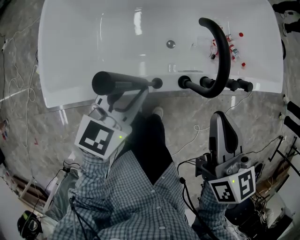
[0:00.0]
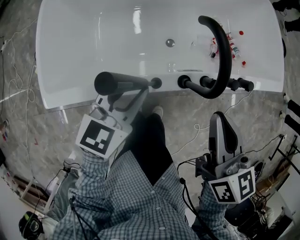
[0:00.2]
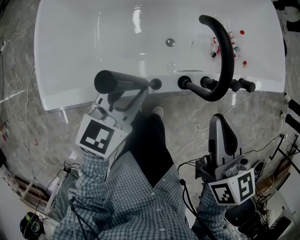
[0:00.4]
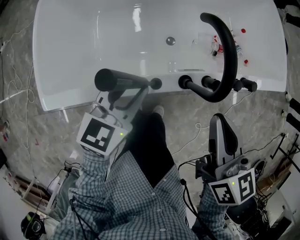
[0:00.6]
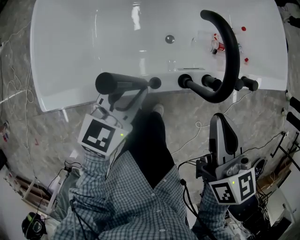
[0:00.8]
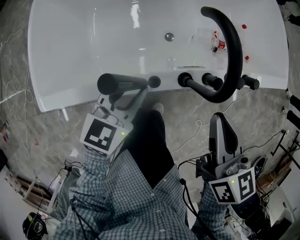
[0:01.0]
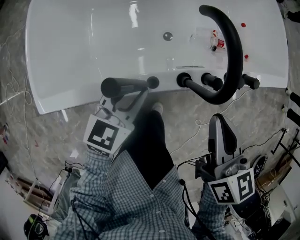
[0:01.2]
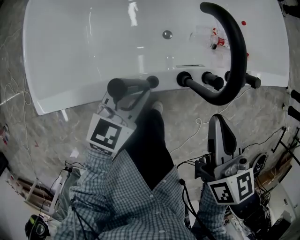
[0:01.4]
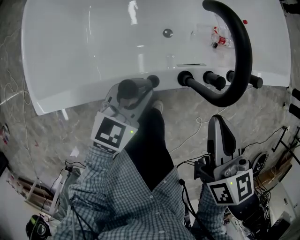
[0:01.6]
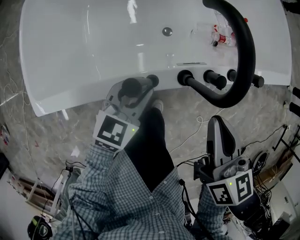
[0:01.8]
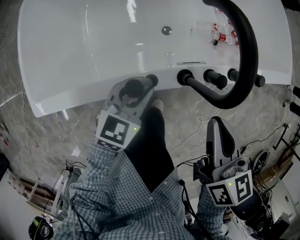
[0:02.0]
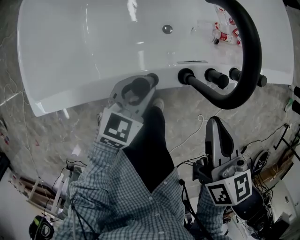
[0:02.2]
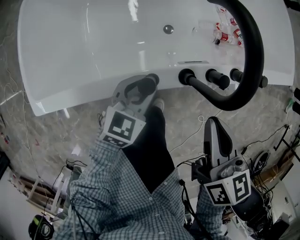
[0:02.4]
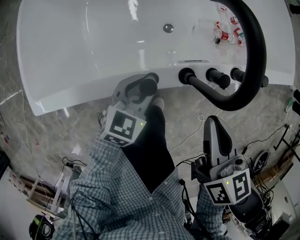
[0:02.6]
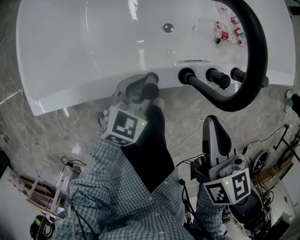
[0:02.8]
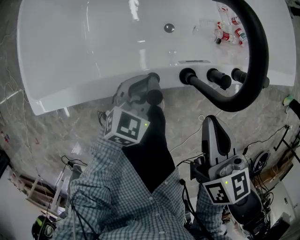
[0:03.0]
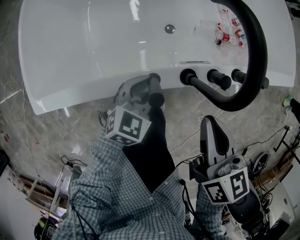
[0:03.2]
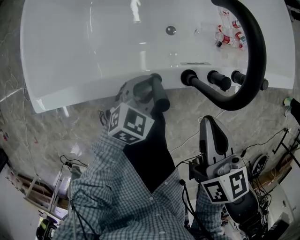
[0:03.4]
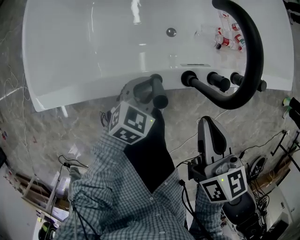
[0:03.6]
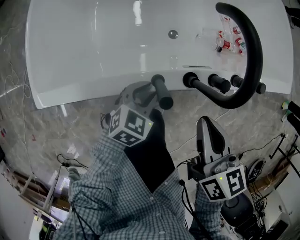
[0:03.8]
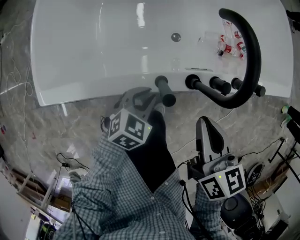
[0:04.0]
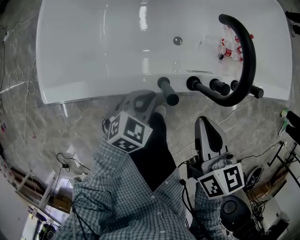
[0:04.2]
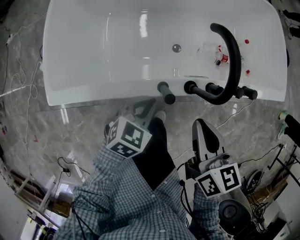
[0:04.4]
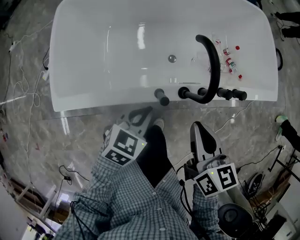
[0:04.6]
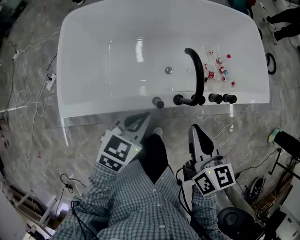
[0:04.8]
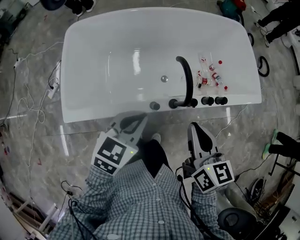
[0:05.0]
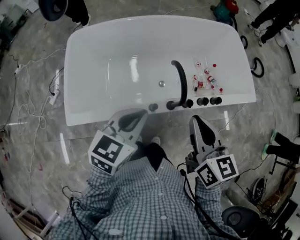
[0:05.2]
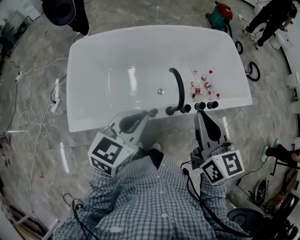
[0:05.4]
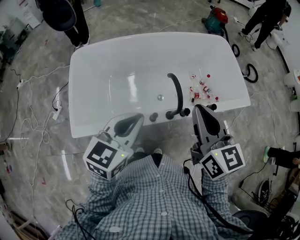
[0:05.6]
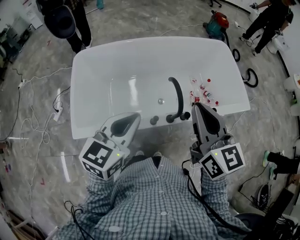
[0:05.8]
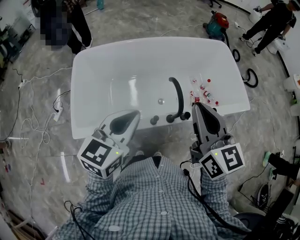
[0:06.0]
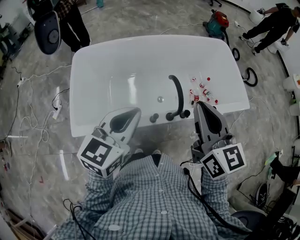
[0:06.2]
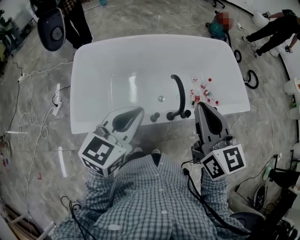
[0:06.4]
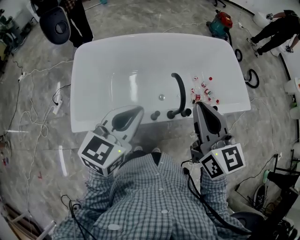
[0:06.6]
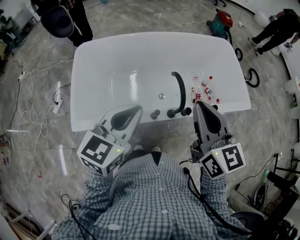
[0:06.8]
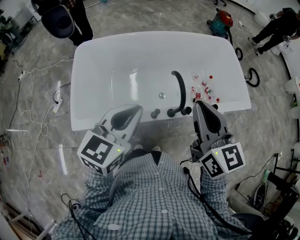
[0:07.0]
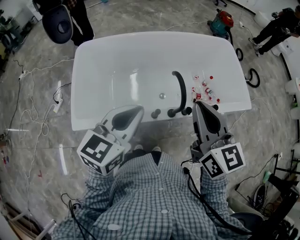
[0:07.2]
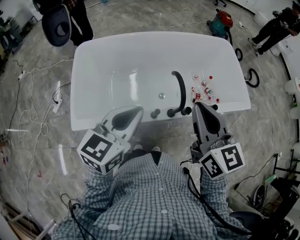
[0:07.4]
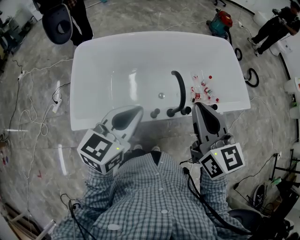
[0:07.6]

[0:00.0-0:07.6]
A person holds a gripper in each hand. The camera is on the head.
0:00.0 to 0:01.6: Both grippers move downward, roughly 10 cm.
0:01.6 to 0:03.0: The left gripper heads downward, covering about 5 cm.
0:03.0 to 0:04.6: The left gripper shifts about 15 cm upward, and closes its fingers. The right gripper moves upward, approximately 10 cm.
0:04.6 to 0:06.0: The grippers both shift upward by approximately 30 cm. The right gripper turns by approximately 30 degrees. Meanwhile the left gripper turns by approximately 30 degrees.
0:06.0 to 0:07.6: The grippers stay close to where they were, moving slightly.

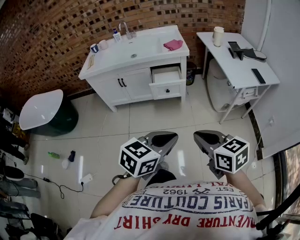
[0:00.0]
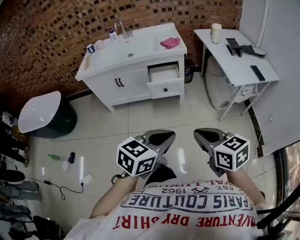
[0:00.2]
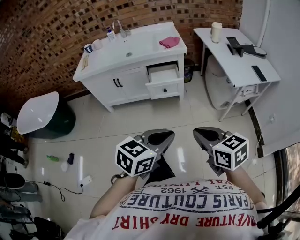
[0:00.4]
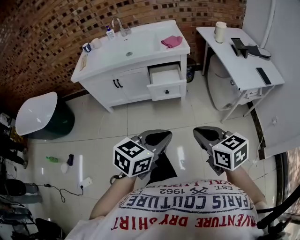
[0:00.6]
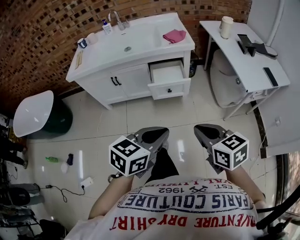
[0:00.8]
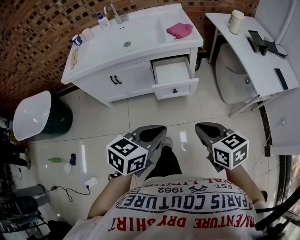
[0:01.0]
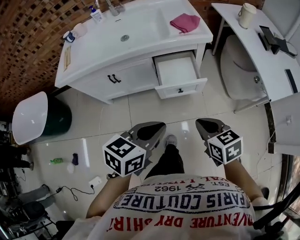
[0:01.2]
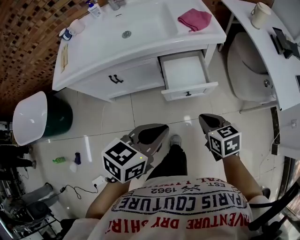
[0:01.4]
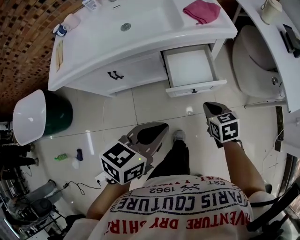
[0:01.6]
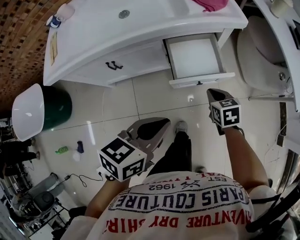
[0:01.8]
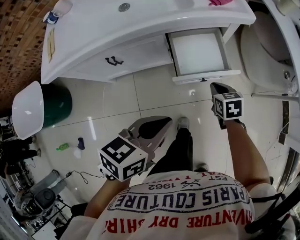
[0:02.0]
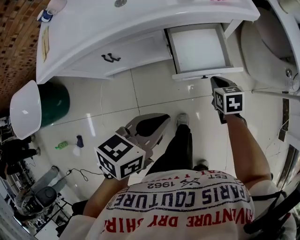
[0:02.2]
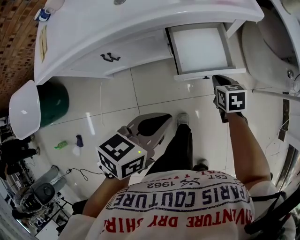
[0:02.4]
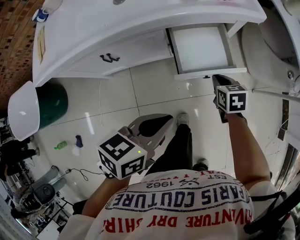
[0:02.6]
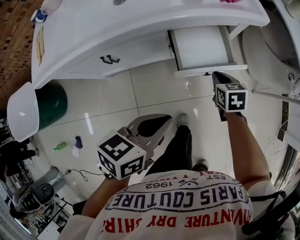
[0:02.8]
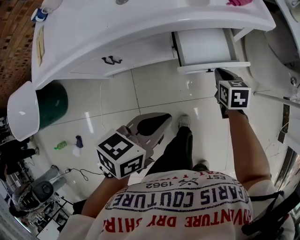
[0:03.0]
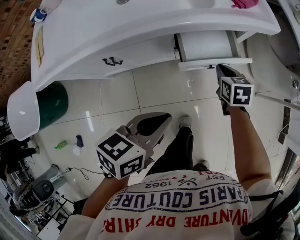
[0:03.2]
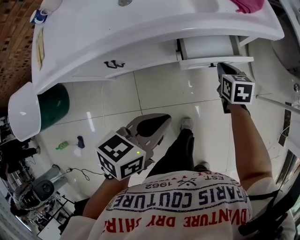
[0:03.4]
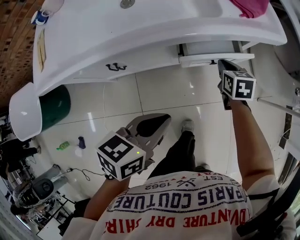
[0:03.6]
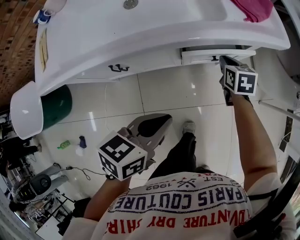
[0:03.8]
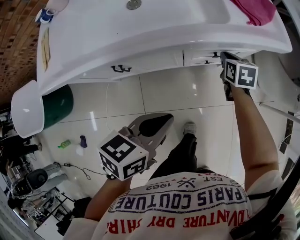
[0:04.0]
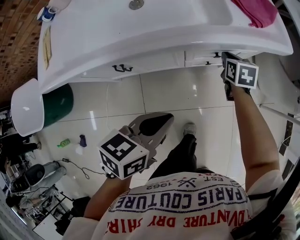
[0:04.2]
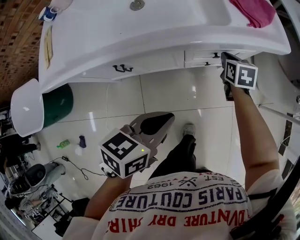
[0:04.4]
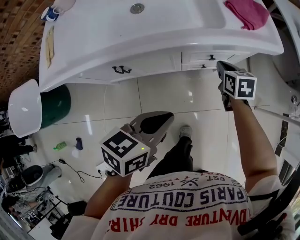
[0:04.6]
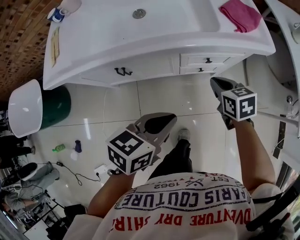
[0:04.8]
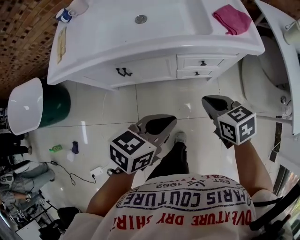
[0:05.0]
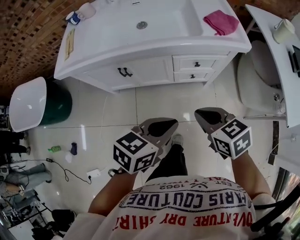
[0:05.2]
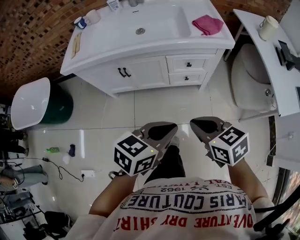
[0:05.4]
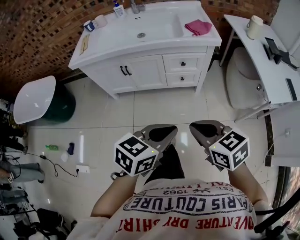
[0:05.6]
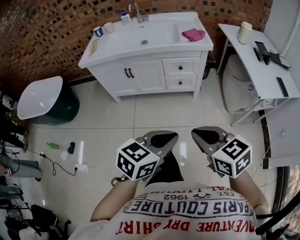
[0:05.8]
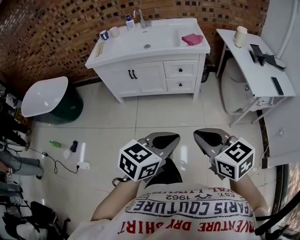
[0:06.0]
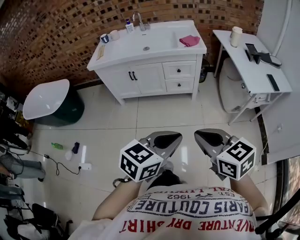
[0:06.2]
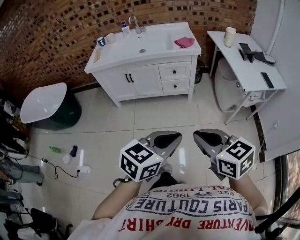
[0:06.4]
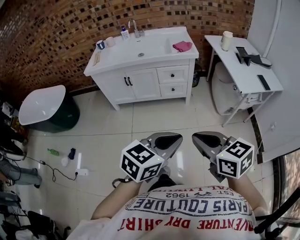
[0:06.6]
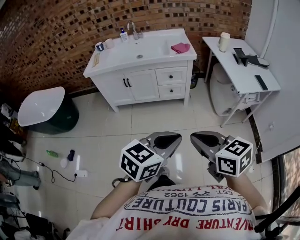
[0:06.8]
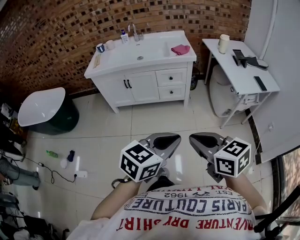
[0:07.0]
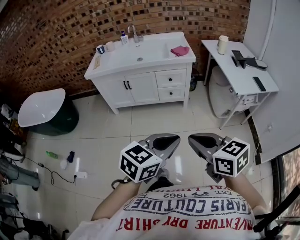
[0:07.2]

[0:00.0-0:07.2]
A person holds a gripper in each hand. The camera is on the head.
0:00.0 to 0:01.4: The two grippers travel together, forward, some 50 cm. The right gripper goes roughly 25 cm downward, and swivels approximately 20 degrees.
0:01.4 to 0:02.8: The right gripper heads downward and forward, covering about 25 cm; the left gripper is displaced downward, to the left and forward by roughly 15 cm.
0:02.8 to 0:04.4: The right gripper travels forward and to the left by roughly 15 cm. The left gripper travels forward and to the left by some 10 cm.
0:04.4 to 0:05.8: The pair of grippers is taken backward, about 50 cm. The right gripper travels upward by about 35 cm, and rotates some 50 degrees. Meanwhile the left gripper rotates about 20 degrees.
0:05.8 to 0:07.2: The two grippers go roughly 20 cm backward and upward.

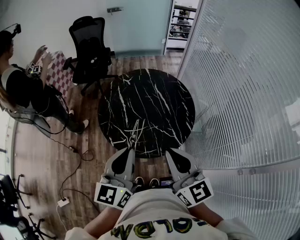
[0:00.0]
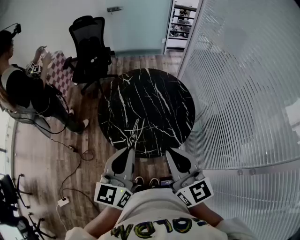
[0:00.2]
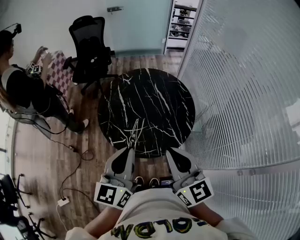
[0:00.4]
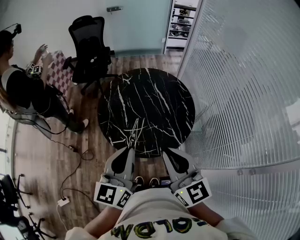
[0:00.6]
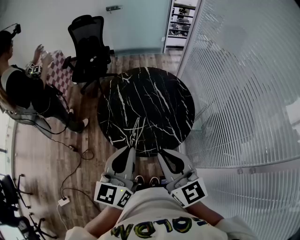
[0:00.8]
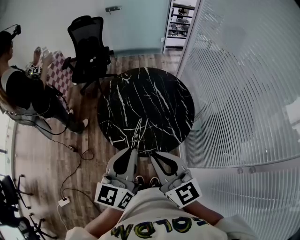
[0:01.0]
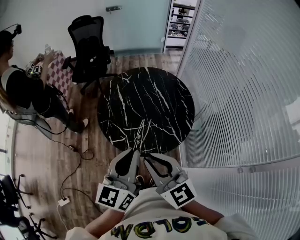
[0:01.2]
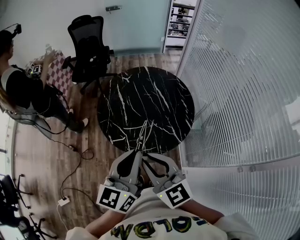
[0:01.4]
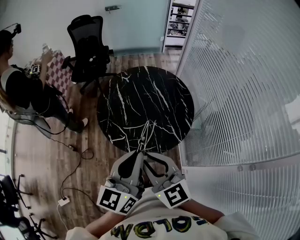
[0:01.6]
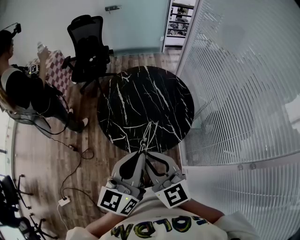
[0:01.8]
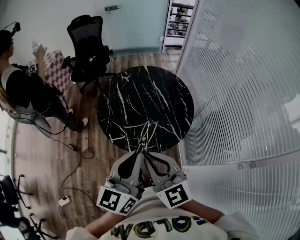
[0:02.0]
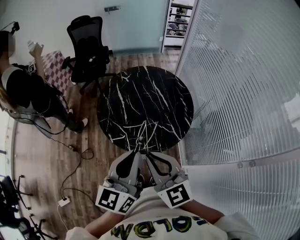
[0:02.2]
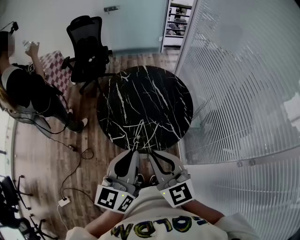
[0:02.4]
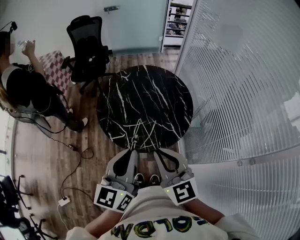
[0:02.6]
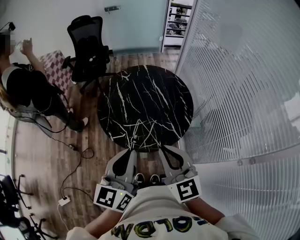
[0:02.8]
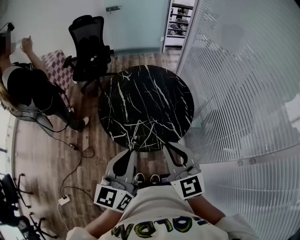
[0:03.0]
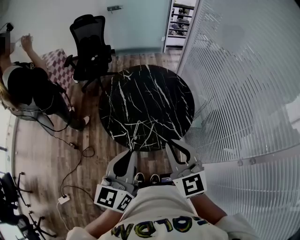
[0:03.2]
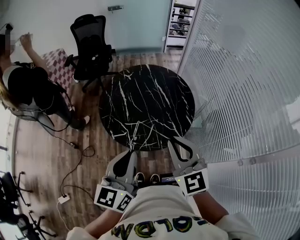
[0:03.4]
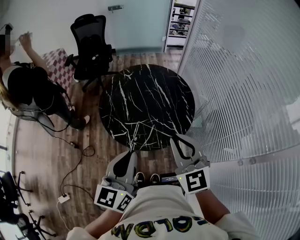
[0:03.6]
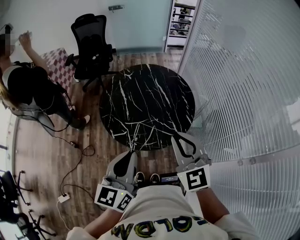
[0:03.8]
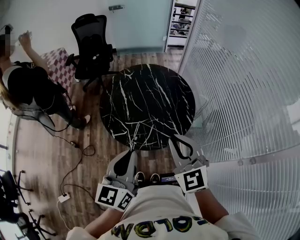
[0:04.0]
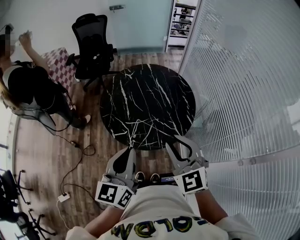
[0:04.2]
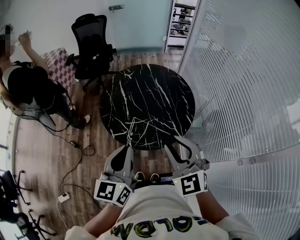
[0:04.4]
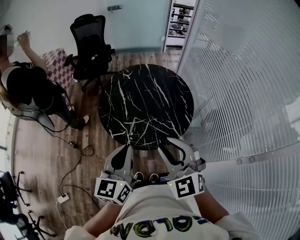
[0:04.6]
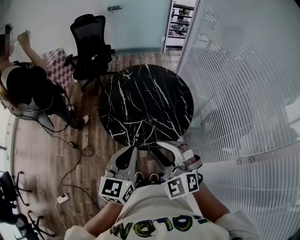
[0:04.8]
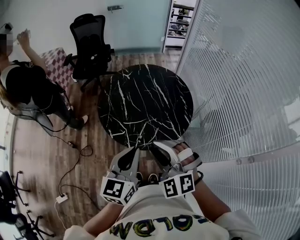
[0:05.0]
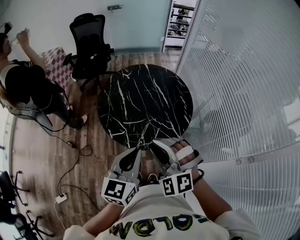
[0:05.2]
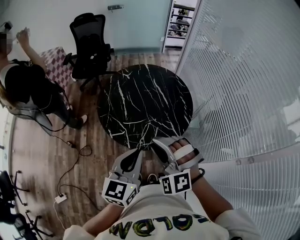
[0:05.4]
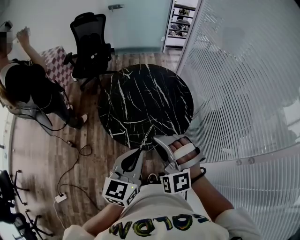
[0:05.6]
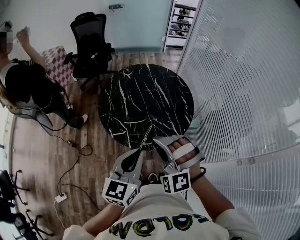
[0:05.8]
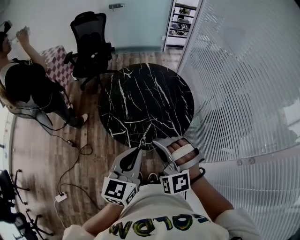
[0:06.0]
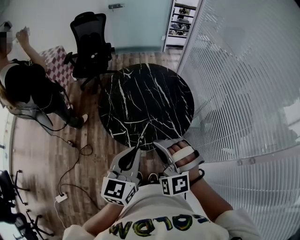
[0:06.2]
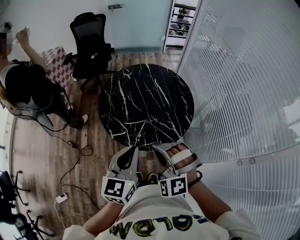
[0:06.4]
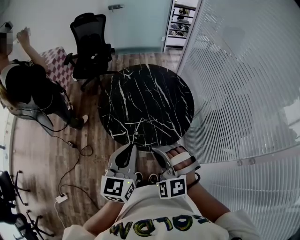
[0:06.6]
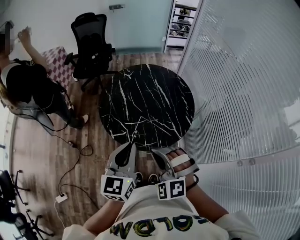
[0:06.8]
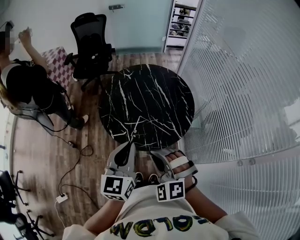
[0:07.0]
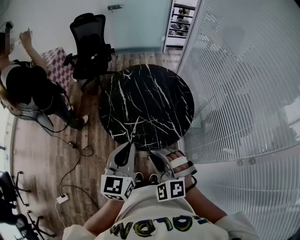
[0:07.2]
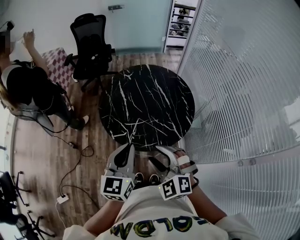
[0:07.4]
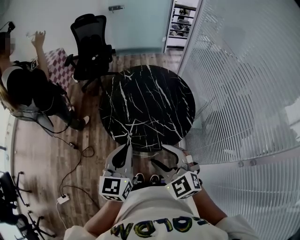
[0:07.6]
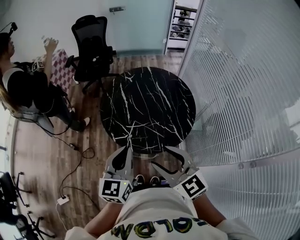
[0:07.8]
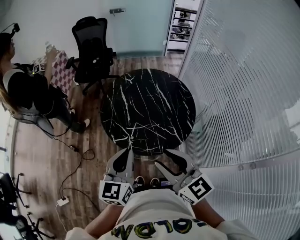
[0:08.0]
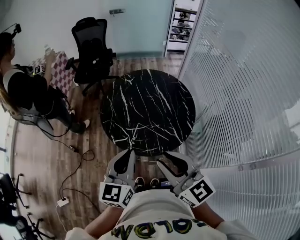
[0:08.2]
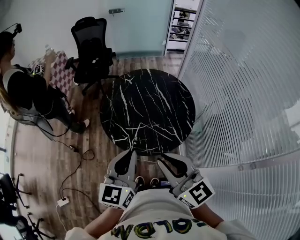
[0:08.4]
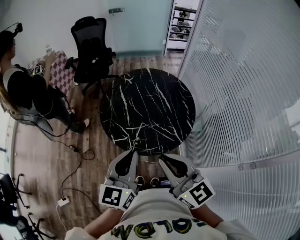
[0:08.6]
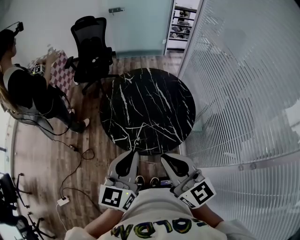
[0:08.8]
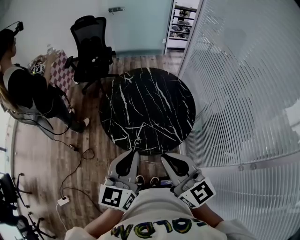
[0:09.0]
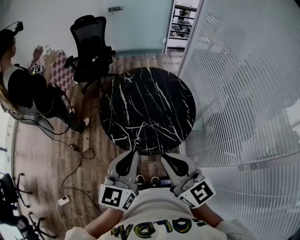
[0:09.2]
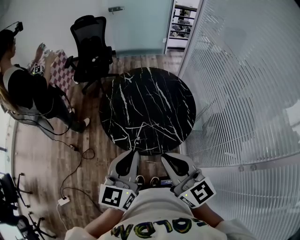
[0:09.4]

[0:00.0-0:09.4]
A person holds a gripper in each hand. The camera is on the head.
0:00.0 to 0:01.6: The right gripper moves to the left, approximately 5 cm.
0:01.6 to 0:03.2: The right gripper shifts about 5 cm to the right.
0:03.2 to 0:04.8: The right gripper shifts by about 5 cm, turns by about 30 degrees, and opens up.
0:04.8 to 0:06.2: The right gripper changes its angle by roughly 30 degrees.
0:06.2 to 0:07.8: The right gripper rolls clockwise, seen from behind, by roughly 60 degrees, and opens up.
0:07.8 to 0:09.4: The left gripper moves roughly 5 cm; the right gripper is displaced upward by approximately 5 cm, and closes.
